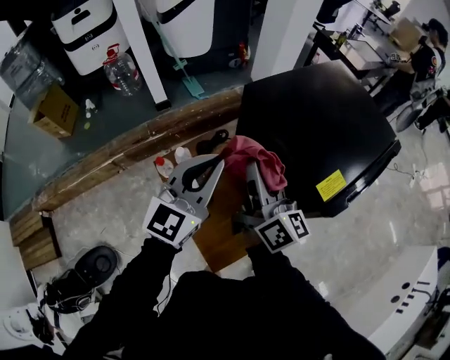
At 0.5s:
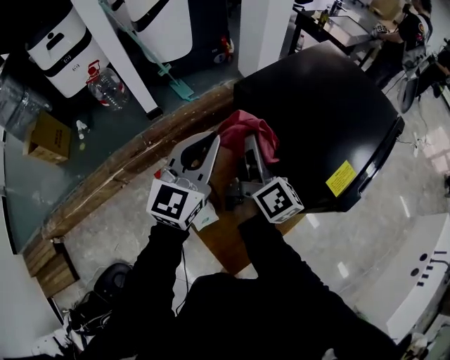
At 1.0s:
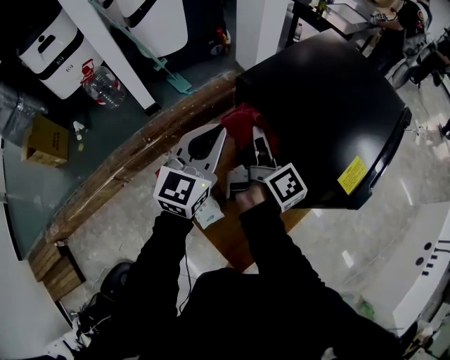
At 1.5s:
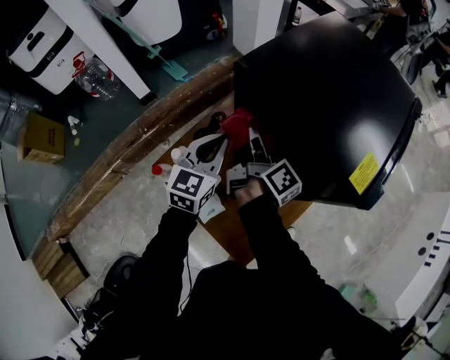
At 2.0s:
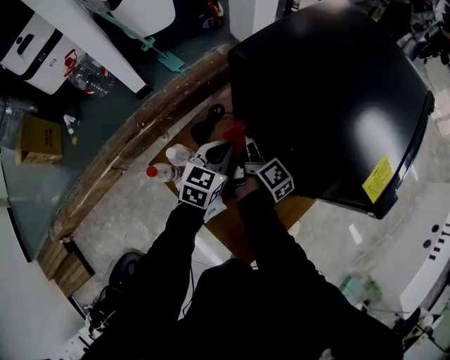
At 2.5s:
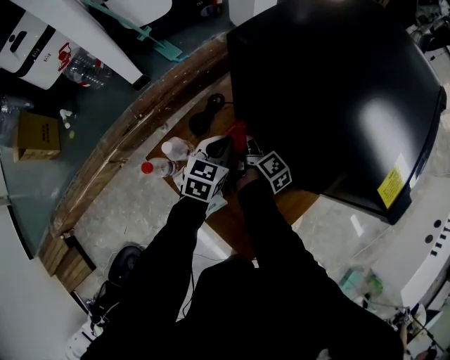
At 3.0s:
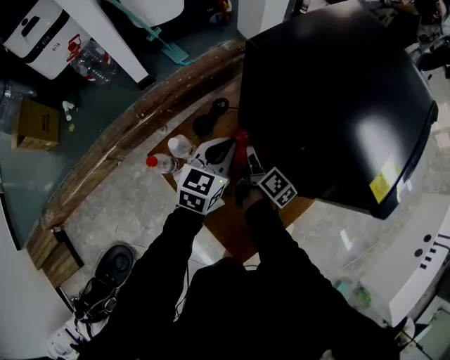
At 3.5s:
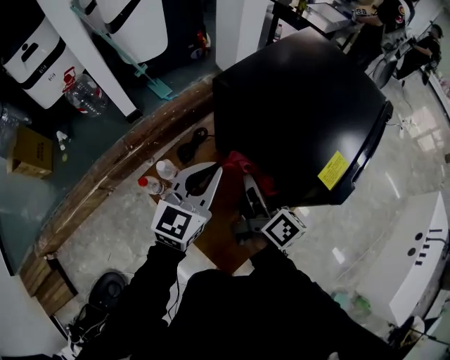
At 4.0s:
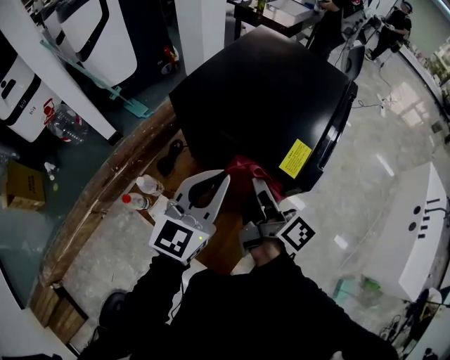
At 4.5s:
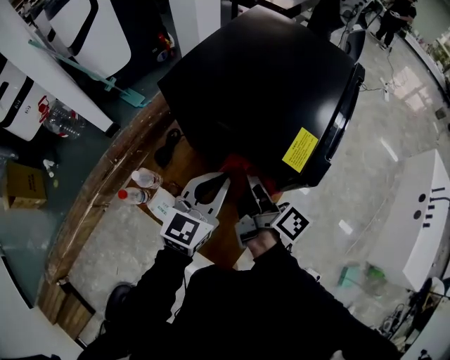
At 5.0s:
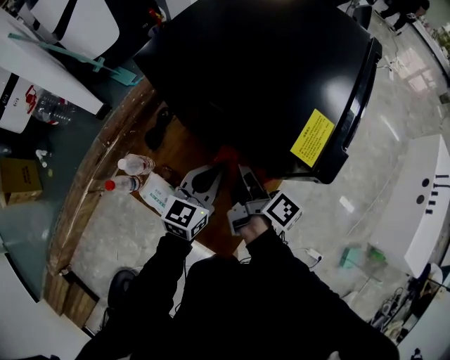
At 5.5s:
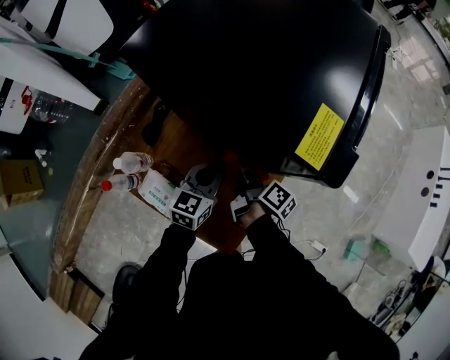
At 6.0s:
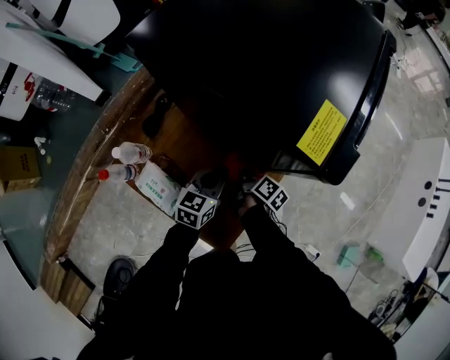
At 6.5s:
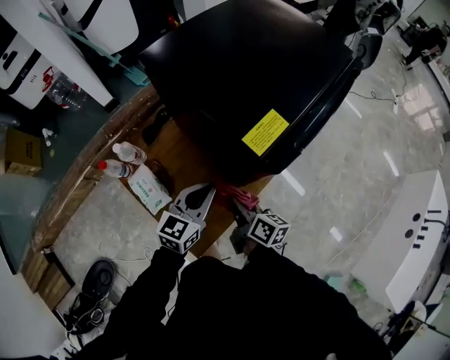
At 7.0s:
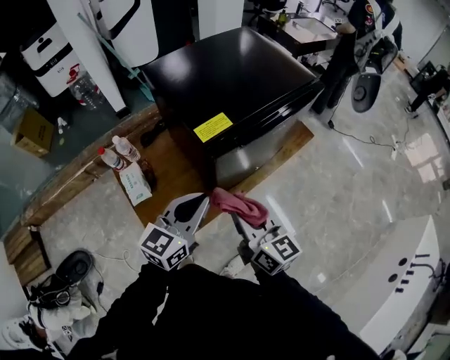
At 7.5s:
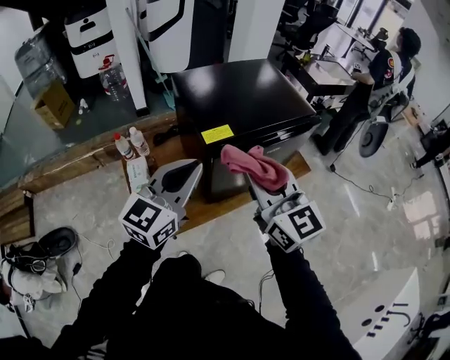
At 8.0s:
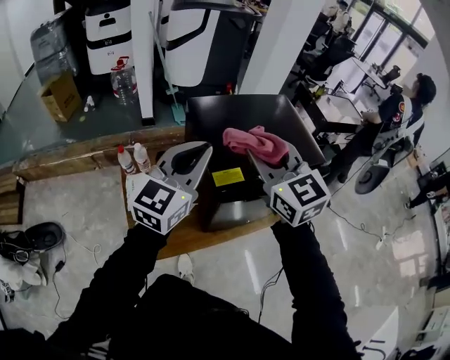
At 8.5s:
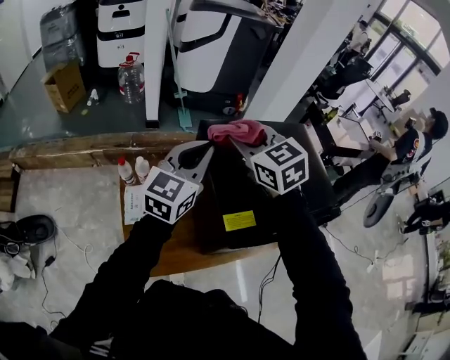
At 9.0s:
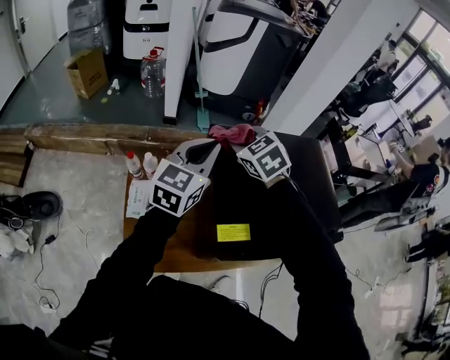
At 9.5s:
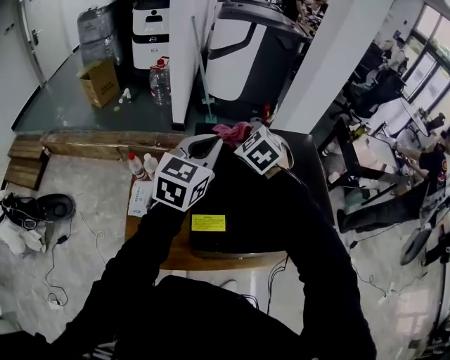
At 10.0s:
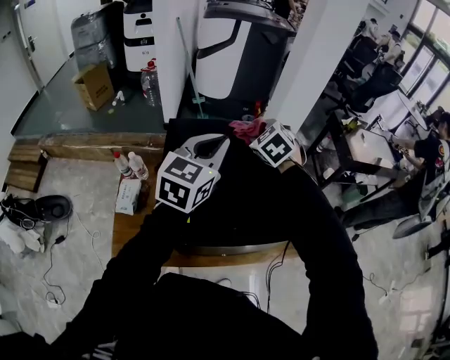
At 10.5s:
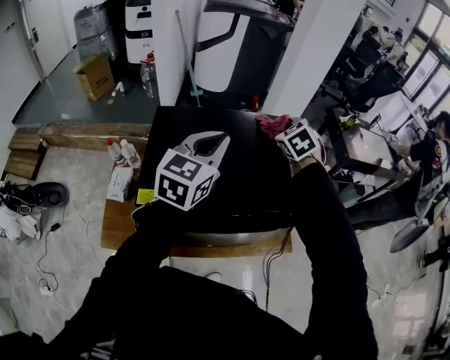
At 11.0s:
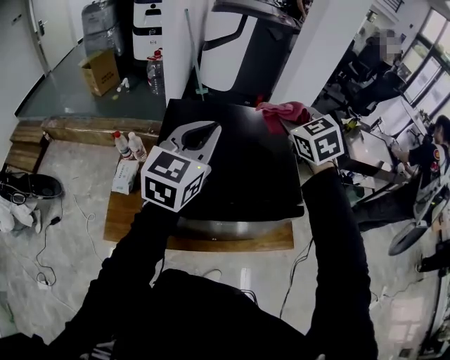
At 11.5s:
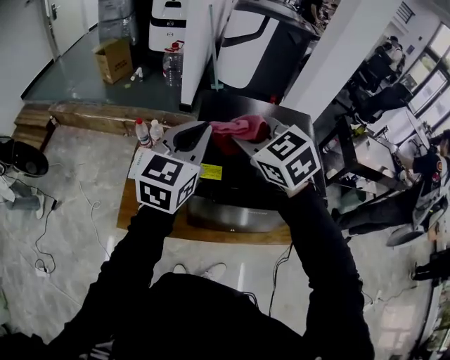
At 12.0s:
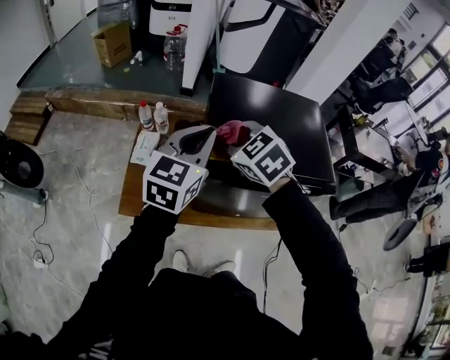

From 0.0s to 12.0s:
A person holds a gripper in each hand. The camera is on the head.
From 0.0s to 2.0s: The grippers both shift downward by approximately 30 cm. The left gripper points its fingers approximately 30 degrees further downward. The right gripper turns by roughly 50 degrees.
From 2.0s to 4.0s: The left gripper is displaced upward and to the right by about 30 cm, and turns by roughly 30 degrees; the right gripper heads upward, to the right and backward, covering approximately 30 cm.
From 4.0s to 6.0s: Both grippers move downward, about 35 cm. The right gripper tips its fingers downward by about 30 degrees, while the left gripper rotates some 30 degrees.
From 6.0s to 8.0s: Both grippers travel together upward, about 50 cm. The left gripper tips its fingers upward by about 30 degrees. The right gripper rolls counterclockwise, seen from behind, by approximately 100 degrees.
From 8.0s to 10.0s: The left gripper is displaced to the right and forward by some 25 cm, and turns by some 20 degrees. Meanwhile the right gripper heads forward, to the right and downward, covering some 35 cm, and tilts its fingers roughly 30 degrees downward.
From 10.0s to 12.0s: The right gripper moves backward and to the left, roughly 30 cm, and rotates approximately 20 degrees. The left gripper moves to the left and backward, about 20 cm.

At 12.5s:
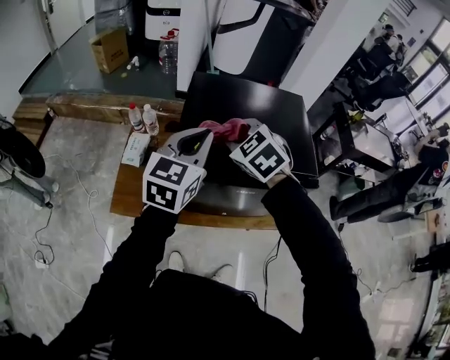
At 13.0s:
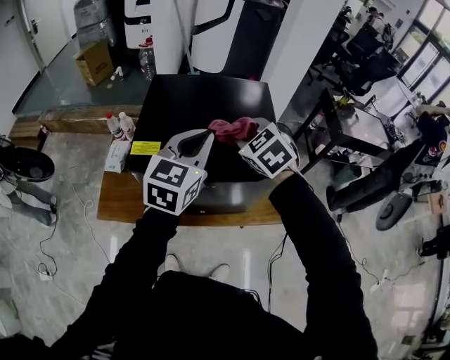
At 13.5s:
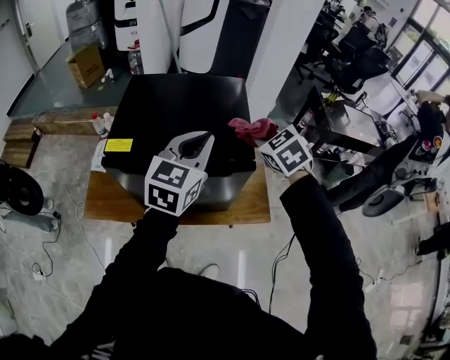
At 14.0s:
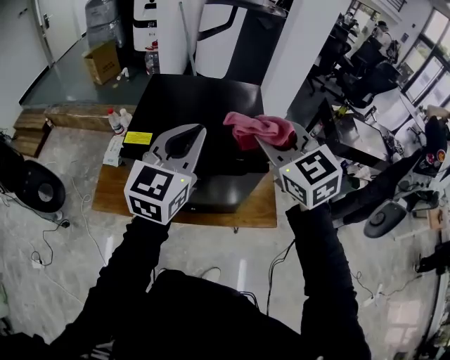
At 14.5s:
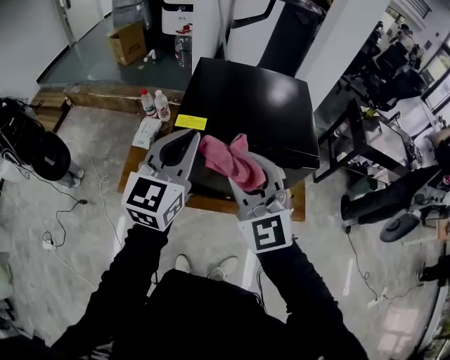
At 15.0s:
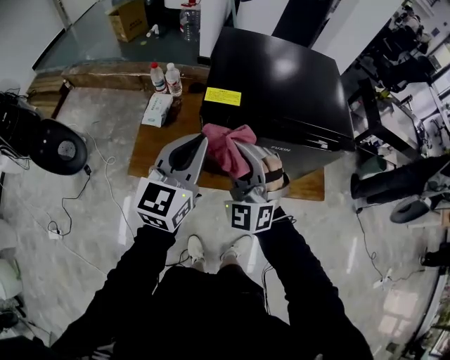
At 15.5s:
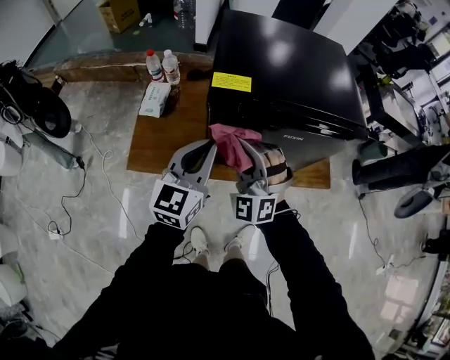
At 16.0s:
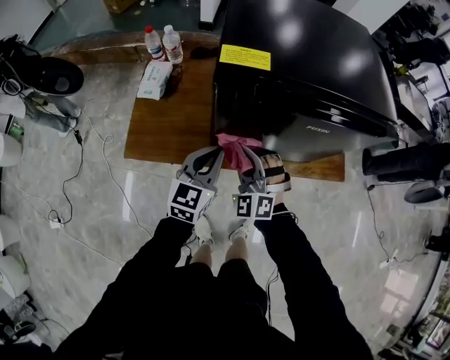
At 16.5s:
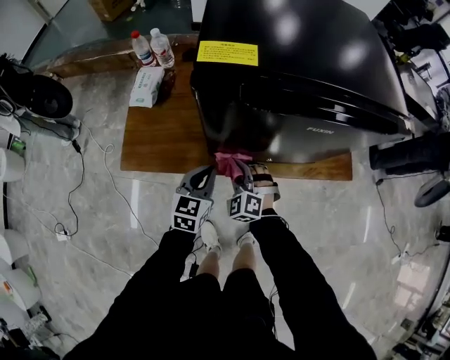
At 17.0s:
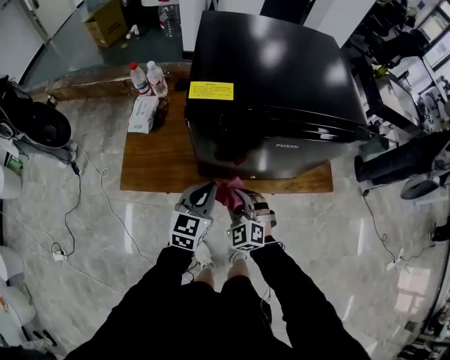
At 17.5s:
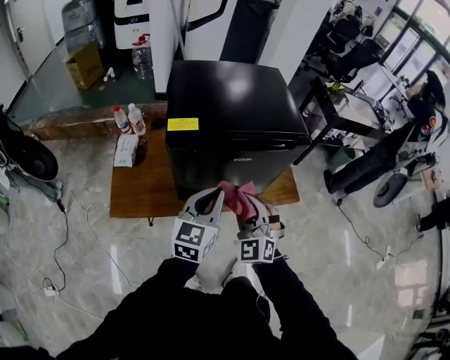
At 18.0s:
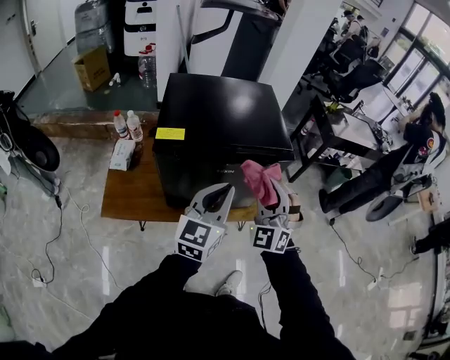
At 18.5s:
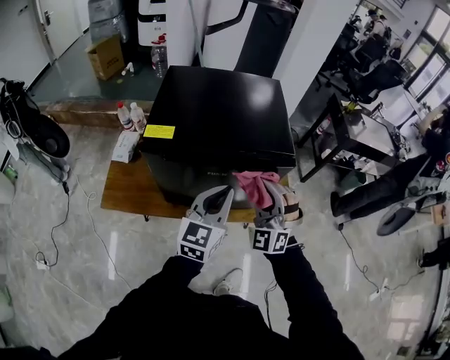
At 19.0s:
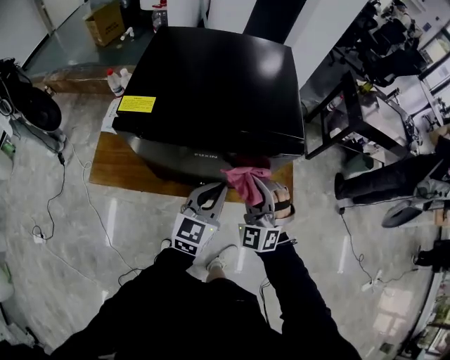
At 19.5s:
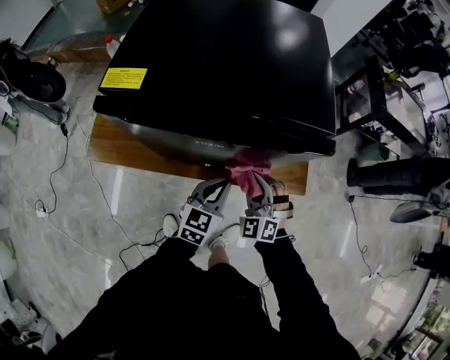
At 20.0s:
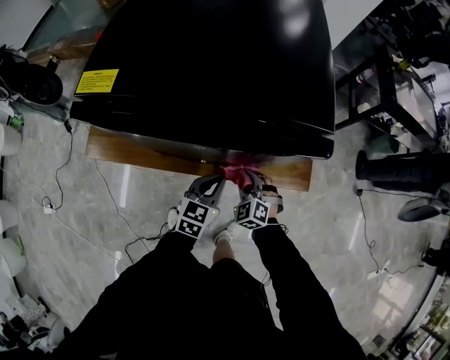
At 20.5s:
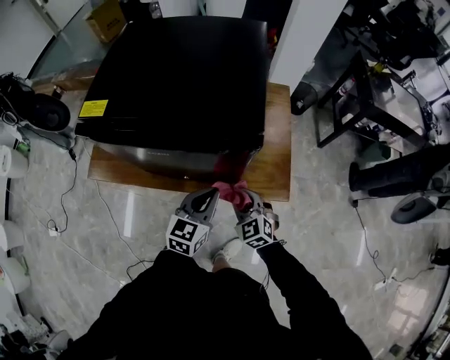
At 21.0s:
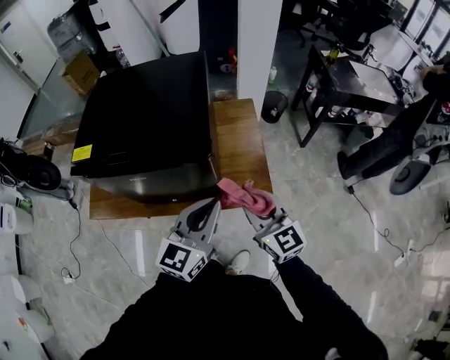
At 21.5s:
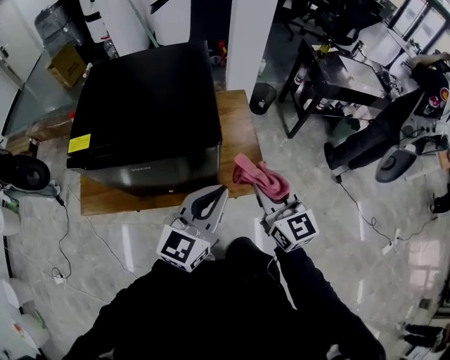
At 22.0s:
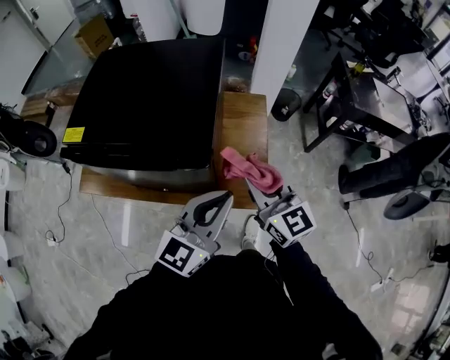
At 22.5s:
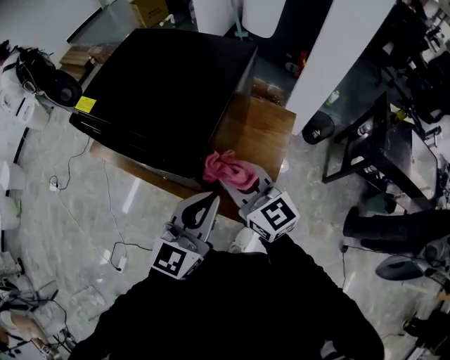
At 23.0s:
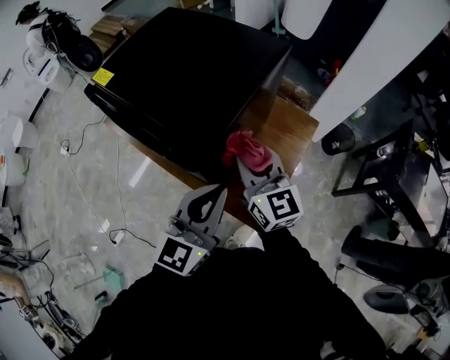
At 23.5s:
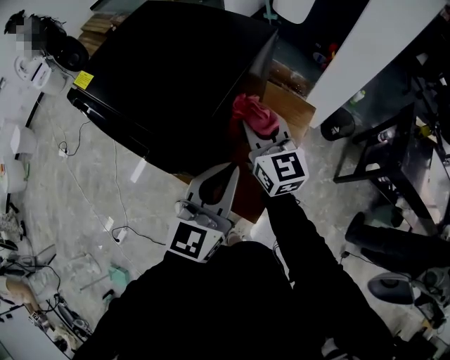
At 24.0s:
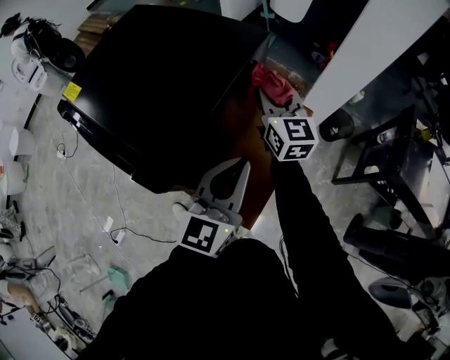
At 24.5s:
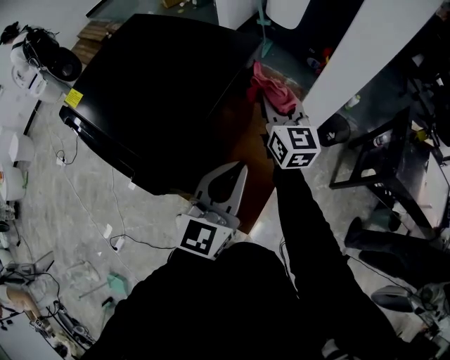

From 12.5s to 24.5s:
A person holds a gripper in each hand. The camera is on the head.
From 12.5s to 14.5s: The left gripper travels backward by approximately 10 cm, and moves about 25 cm to the right and comes back. The right gripper shifts roughly 20 cm backward, reaches roughly 30 cm to the right, then returns, and tilts its fingers some 40 degrees upward.
From 14.5s to 16.5s: Both grippers move downward, about 50 cm. The left gripper swivels approximately 30 degrees. The right gripper points its fingers about 30 degrees further downward.
From 16.5s to 18.5s: Both grippers travel together upward and to the right, approximately 40 cm. The left gripper swivels about 20 degrees. Meanwhile the right gripper angles its fingers upward, by roughly 30 degrees.
From 18.5s to 20.5s: The left gripper heads downward and to the right, covering about 20 cm; the right gripper shifts approximately 25 cm downward, and angles its fingers downward, by approximately 30 degrees.
From 20.5s to 22.5s: The left gripper ends up approximately 25 cm from where it was, and changes its angle by approximately 30 degrees; the right gripper is displaced upward by roughly 25 cm, and tilts its fingers some 30 degrees upward.
From 22.5s to 24.5s: The left gripper heads forward and to the right, covering approximately 15 cm. Meanwhile the right gripper moves forward and to the right, approximately 30 cm.

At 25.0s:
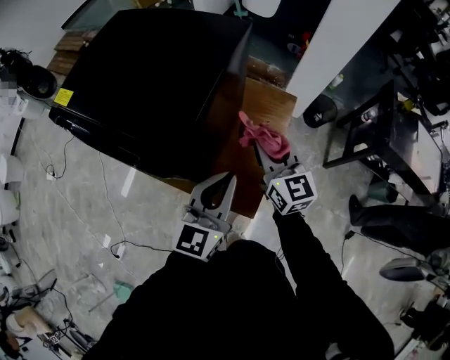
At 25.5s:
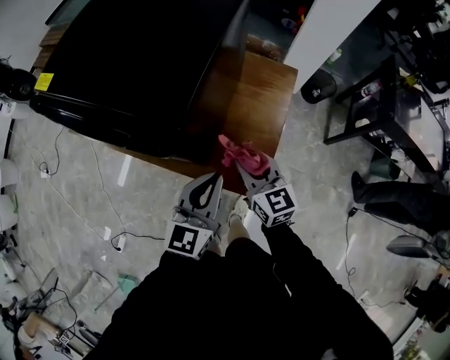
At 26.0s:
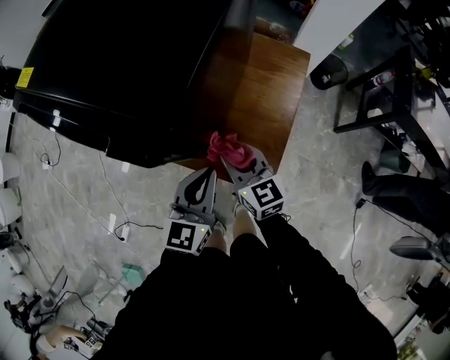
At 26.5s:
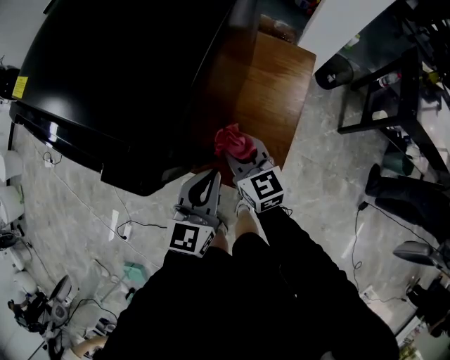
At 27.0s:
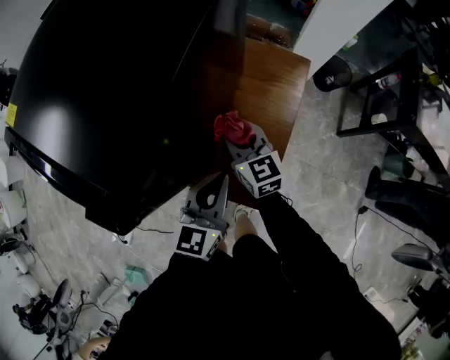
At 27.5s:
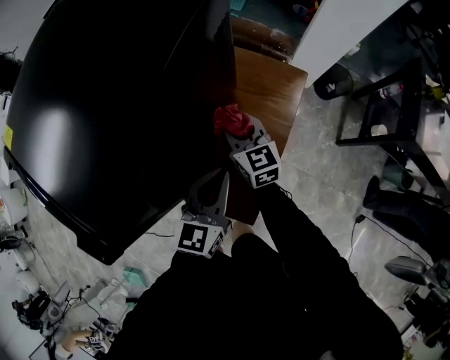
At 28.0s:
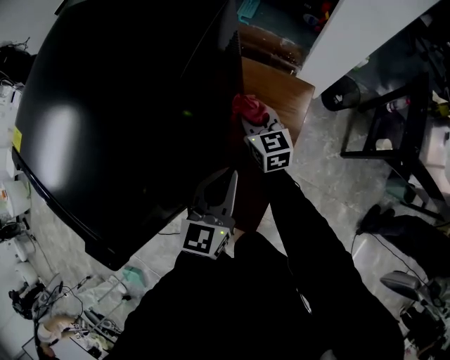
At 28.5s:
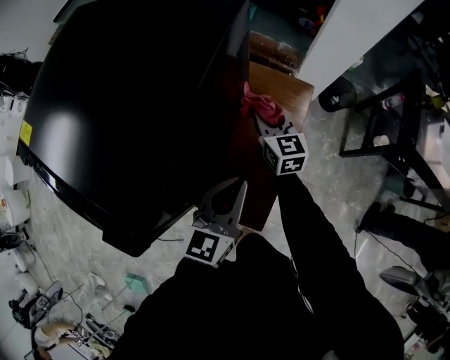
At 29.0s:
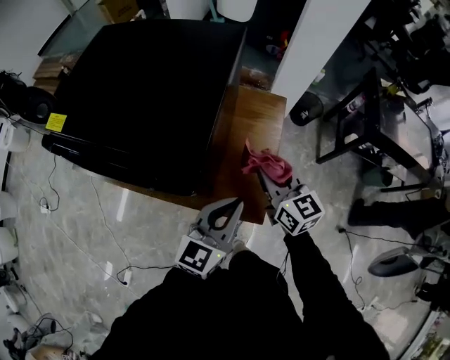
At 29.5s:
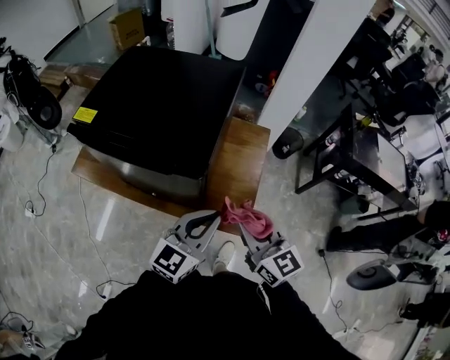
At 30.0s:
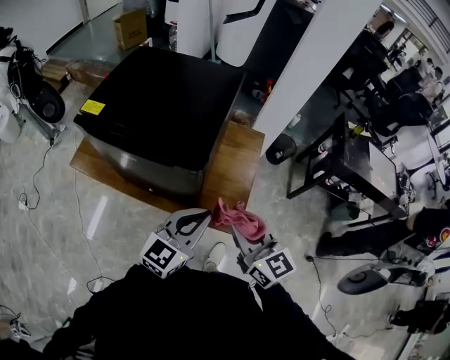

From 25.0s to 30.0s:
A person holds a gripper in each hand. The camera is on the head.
From 25.0s to 27.5s: Both grippers travel together downward and forward, approximately 20 cm.
From 27.5s to 30.0s: The left gripper is displaced upward, backward and to the left by roughly 30 cm, and rotates some 30 degrees. The right gripper moves backward and upward, approximately 40 cm.
